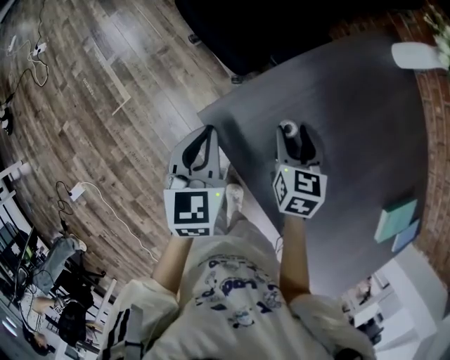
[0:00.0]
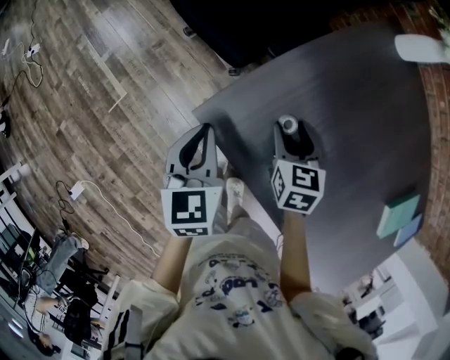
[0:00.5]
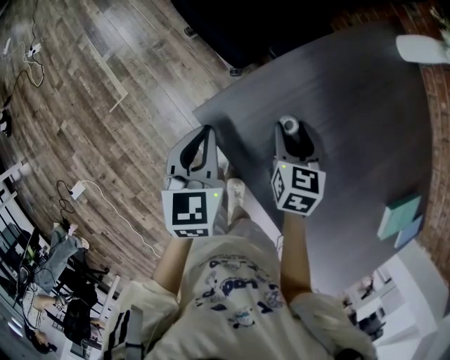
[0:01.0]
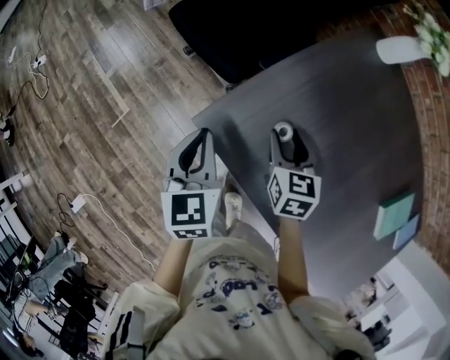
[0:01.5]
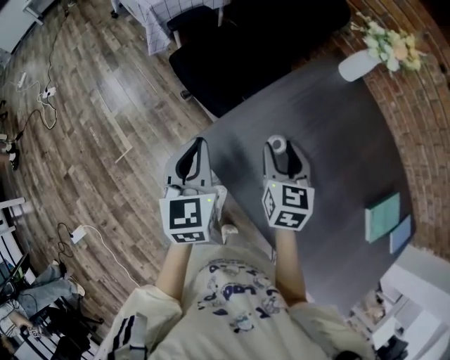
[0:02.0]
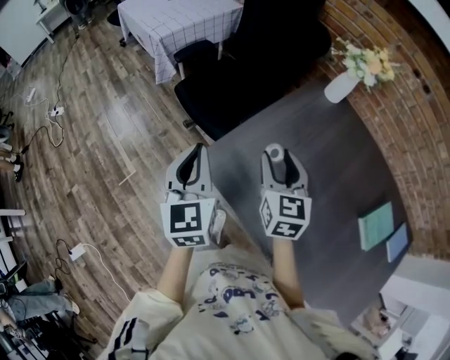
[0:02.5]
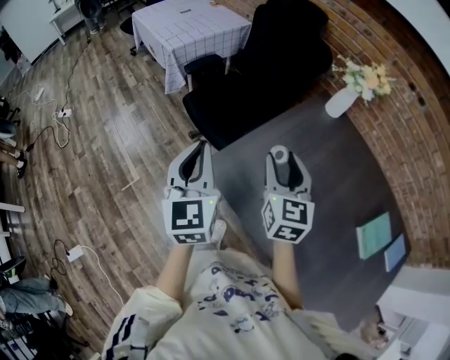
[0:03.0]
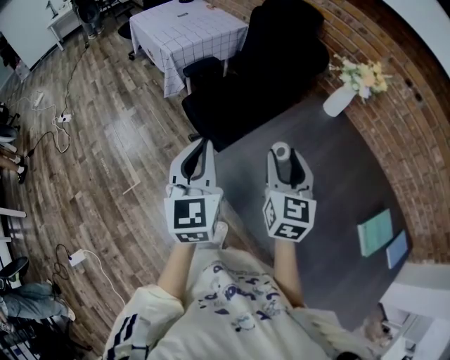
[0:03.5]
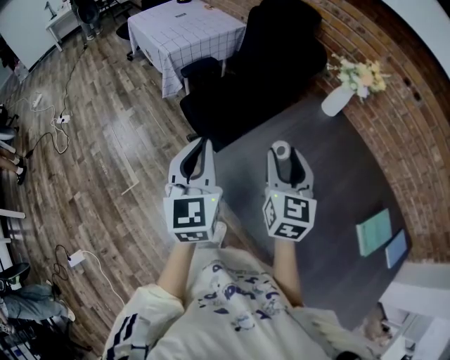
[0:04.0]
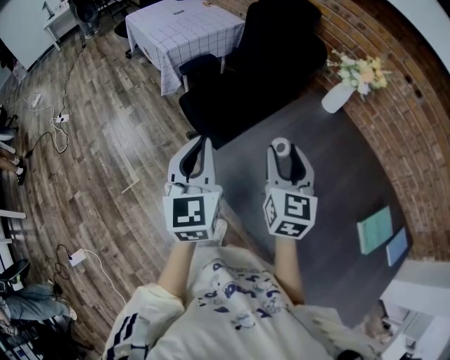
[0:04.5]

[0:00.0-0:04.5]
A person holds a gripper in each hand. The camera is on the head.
0:00.0 to 0:02.0: The two grippers go some 15 cm upward.
0:02.0 to 0:04.5: The grippers both shift upward by some 15 cm.

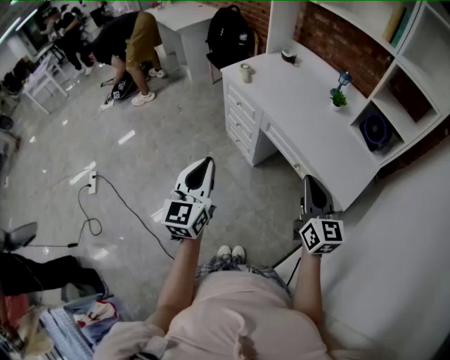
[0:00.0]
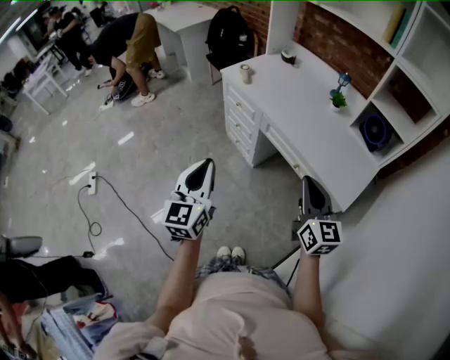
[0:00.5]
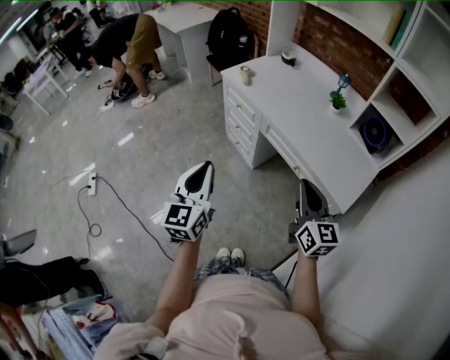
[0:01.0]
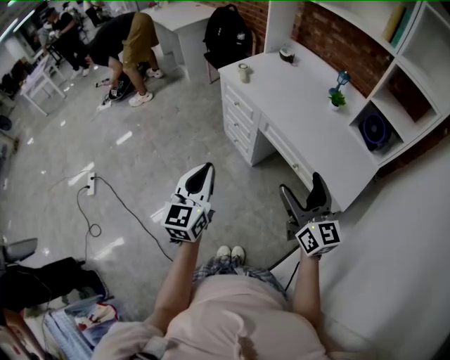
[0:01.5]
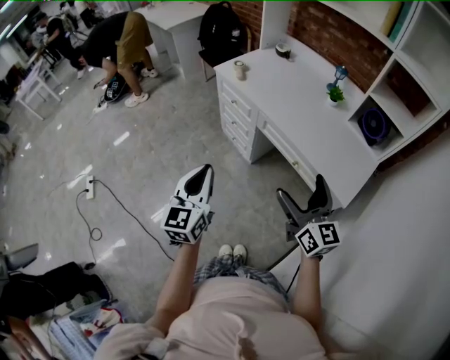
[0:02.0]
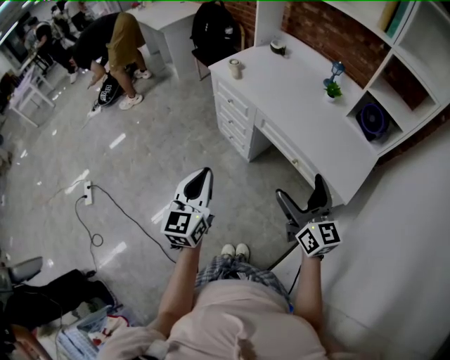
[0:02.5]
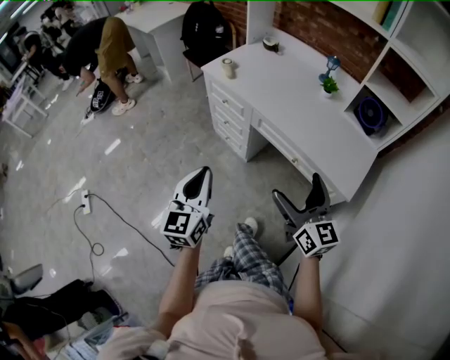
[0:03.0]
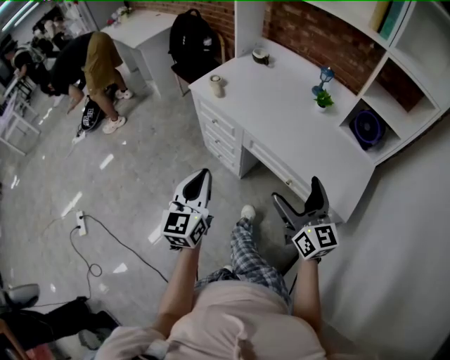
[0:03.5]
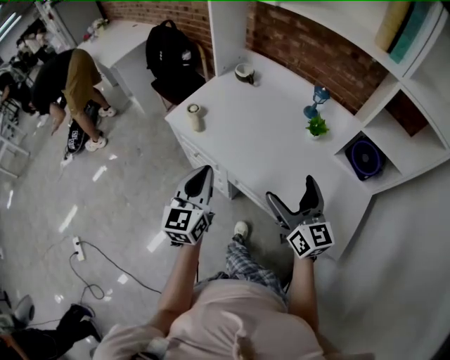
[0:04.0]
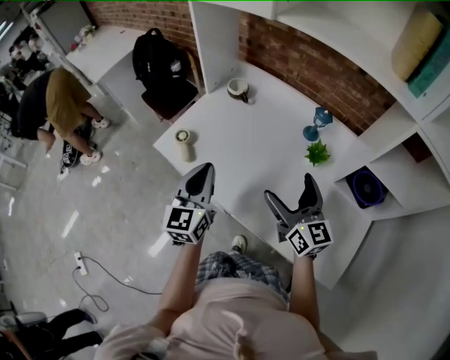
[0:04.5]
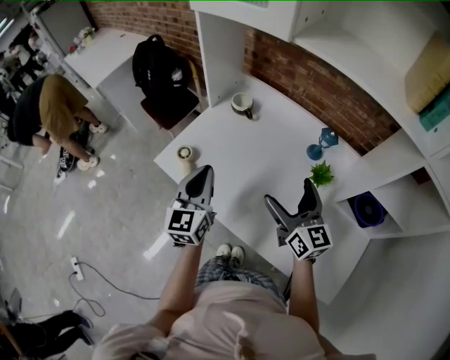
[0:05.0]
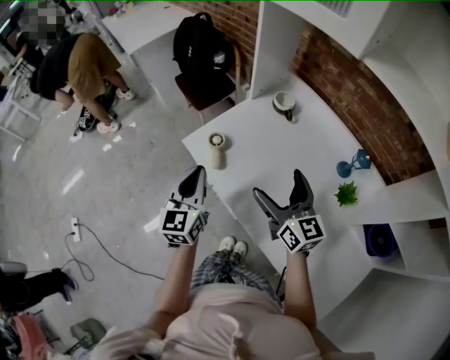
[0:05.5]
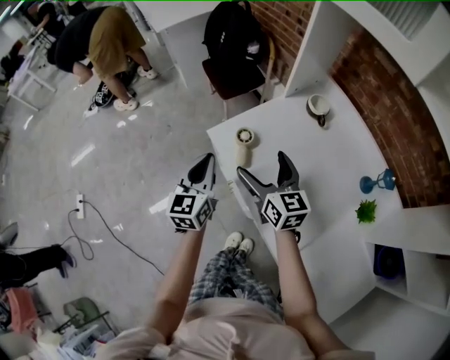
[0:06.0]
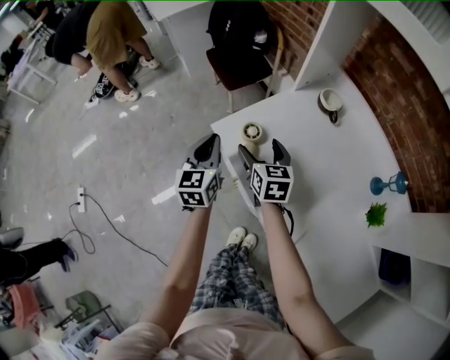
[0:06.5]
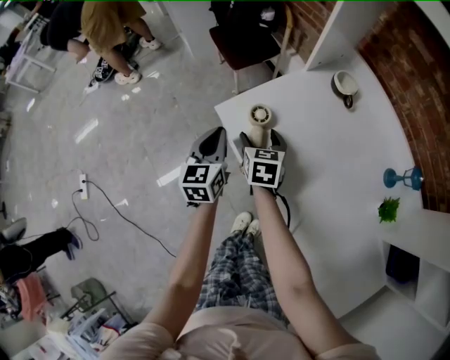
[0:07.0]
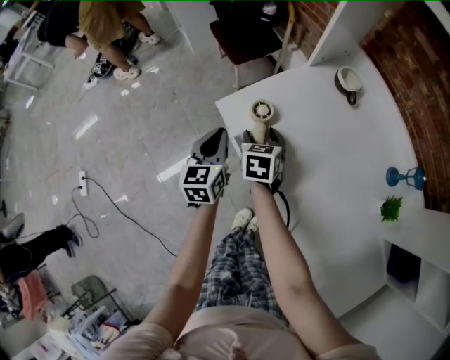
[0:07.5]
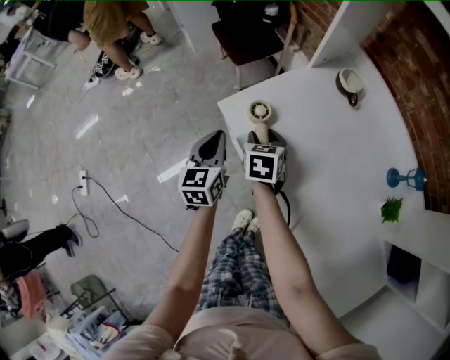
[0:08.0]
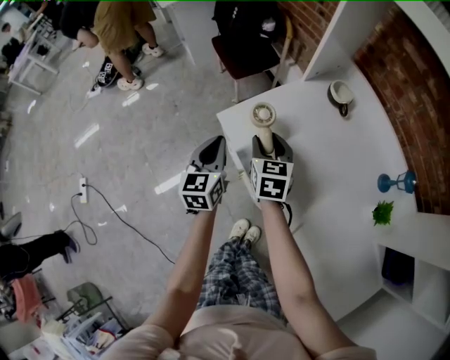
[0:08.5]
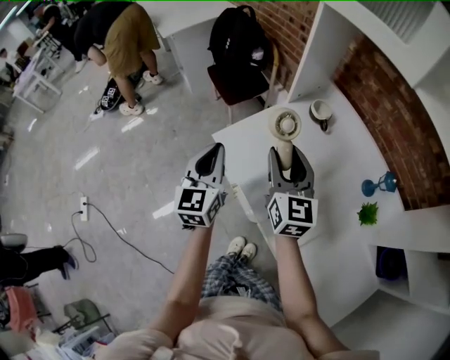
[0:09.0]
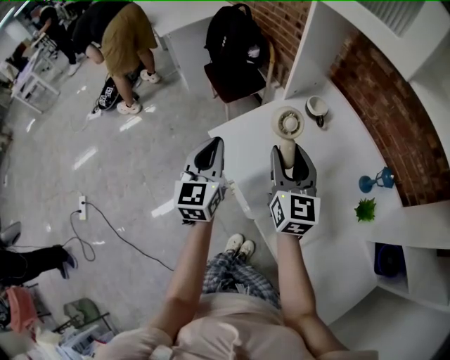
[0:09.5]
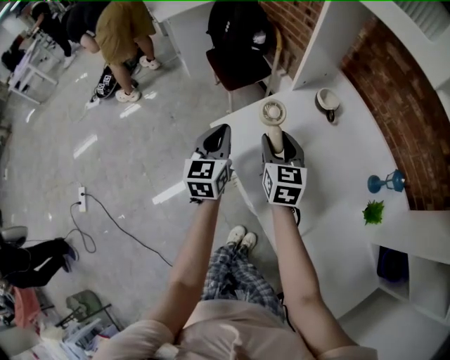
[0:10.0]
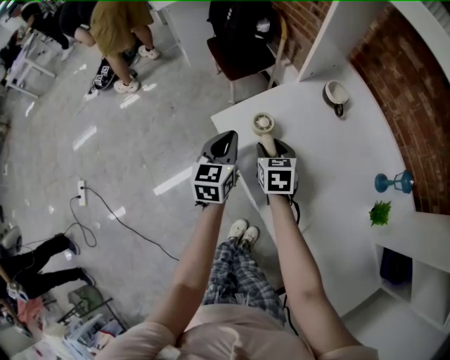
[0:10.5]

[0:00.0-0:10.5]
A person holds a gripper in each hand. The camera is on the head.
0:00.0 to 0:02.0: The right gripper opens up.
0:02.0 to 0:04.0: Both grippers travel together forward, about 35 cm.
0:04.0 to 0:06.5: The grippers both shift forward, to the left and downward by about 50 cm. The left gripper rotates about 30 degrees. Meanwhile the right gripper rotates approximately 30 degrees.
0:06.5 to 0:08.5: The right gripper reaches roughly 10 cm downward, then returns, and closes.
0:08.5 to 0:10.5: The left gripper travels upward and back again, some 15 cm each way. Meanwhile the right gripper reaches some 20 cm upward, then returns.

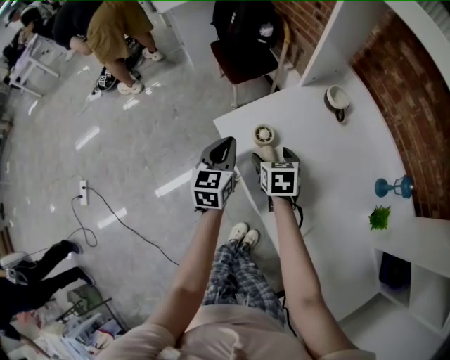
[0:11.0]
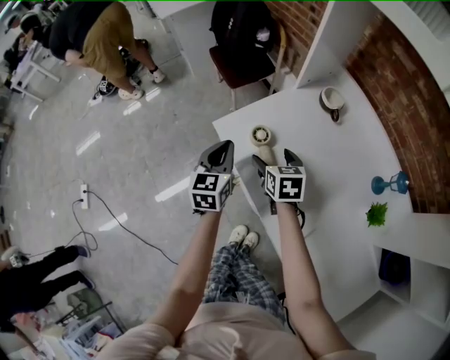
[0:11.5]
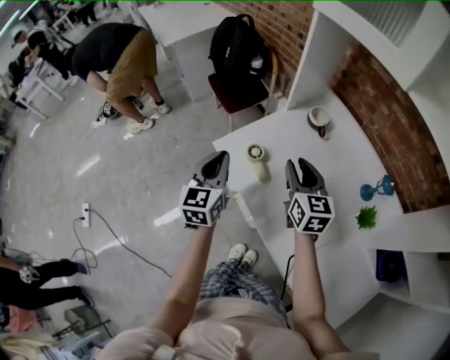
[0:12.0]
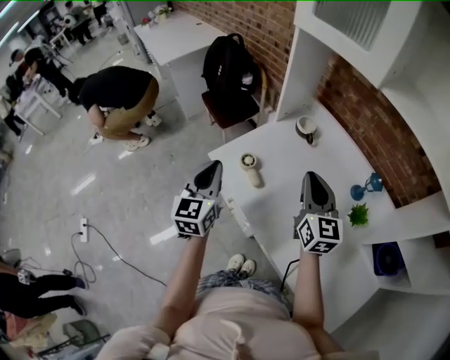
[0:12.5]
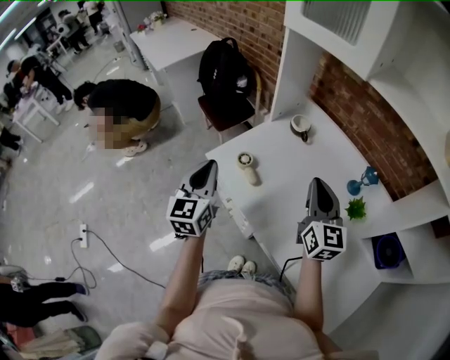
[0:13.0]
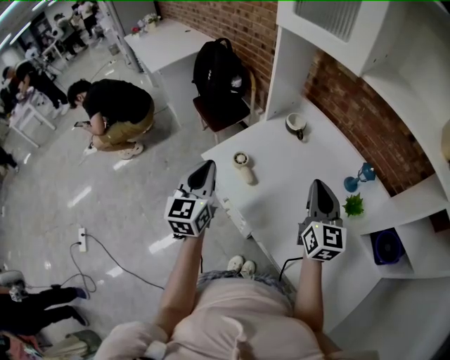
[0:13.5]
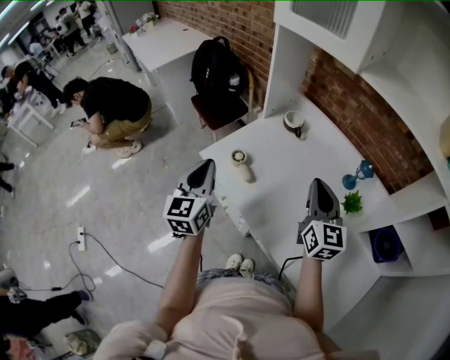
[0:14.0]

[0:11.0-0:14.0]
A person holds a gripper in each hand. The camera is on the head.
0:11.0 to 0:12.5: The left gripper is displaced upward and backward by about 20 cm. Meanwhile the right gripper shifts approximately 35 cm upward, to the right and backward, angles its fingers upward, by about 40 degrees, and closes.
0:12.5 to 0:14.0: The right gripper shifts approximately 10 cm to the right and backward.

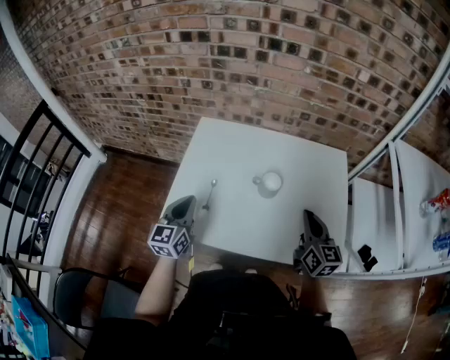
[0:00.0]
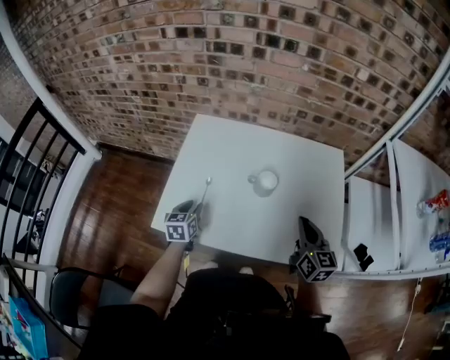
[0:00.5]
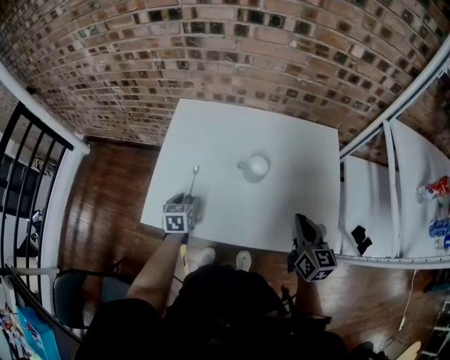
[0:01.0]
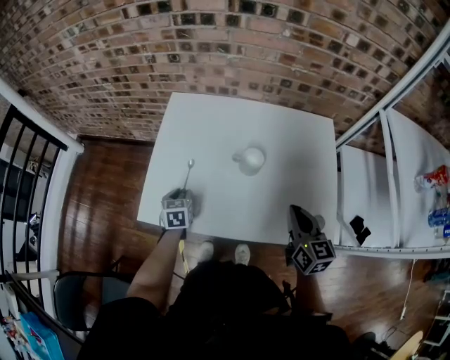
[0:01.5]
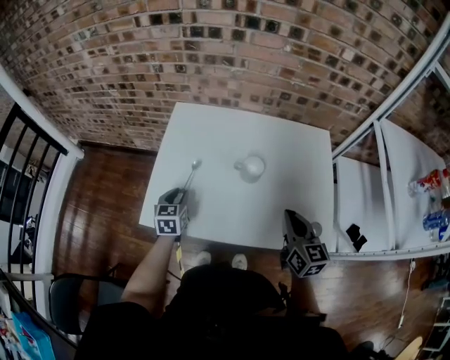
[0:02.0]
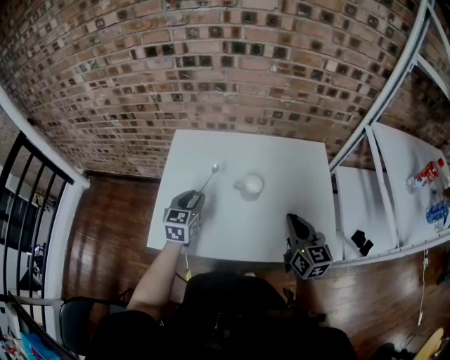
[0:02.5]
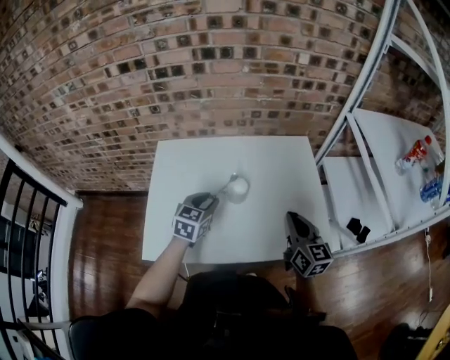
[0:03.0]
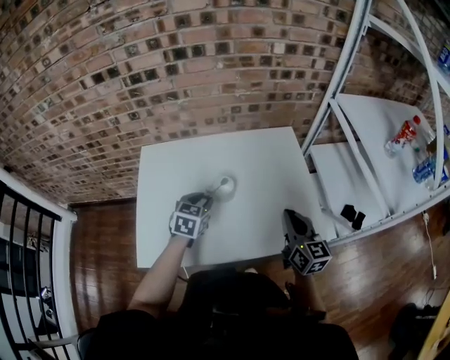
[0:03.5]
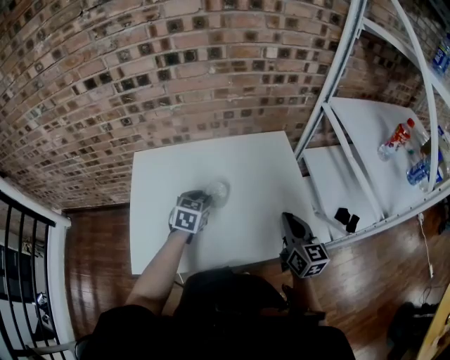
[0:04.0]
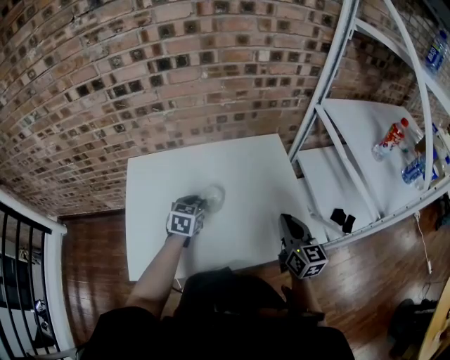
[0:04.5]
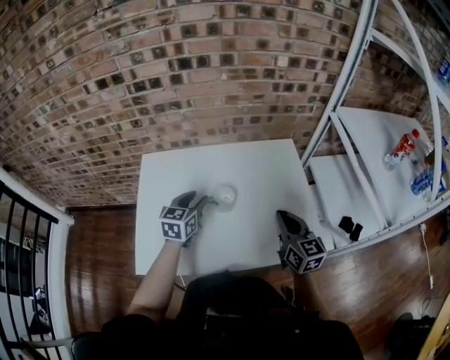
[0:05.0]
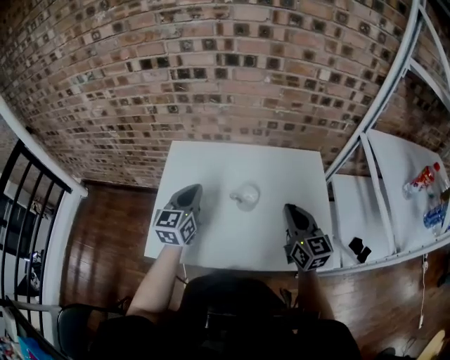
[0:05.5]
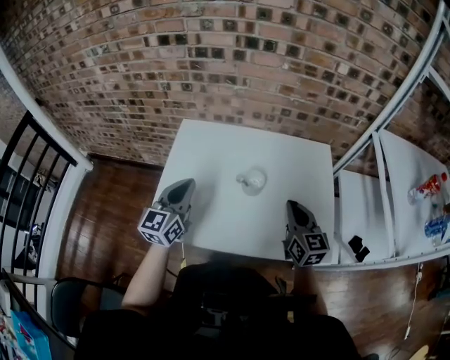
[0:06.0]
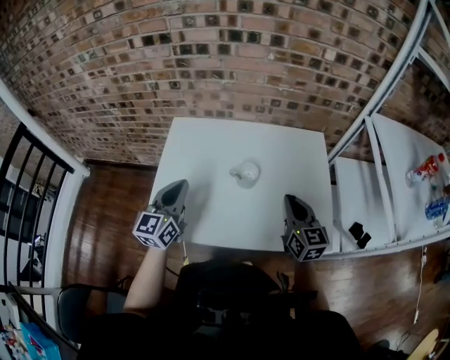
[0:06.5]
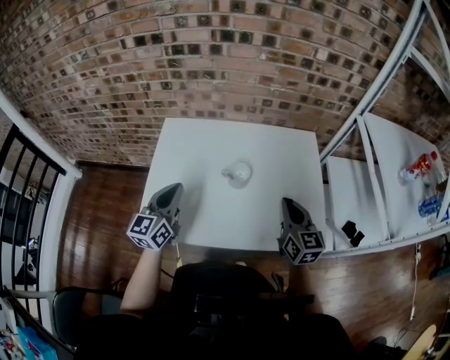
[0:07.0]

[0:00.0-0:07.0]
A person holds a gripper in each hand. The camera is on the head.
0:00.0 to 0:02.0: The left gripper is displaced downward by roughly 15 cm, turns by approximately 20 degrees, and opens up.
0:02.0 to 0:03.5: The right gripper travels to the right by roughly 5 cm, while the left gripper is displaced to the right by some 20 cm, and rotates approximately 30 degrees.
0:03.5 to 0:05.0: The left gripper moves some 5 cm.
0:05.0 to 0:07.0: The left gripper moves backward, to the left and upward, roughly 15 cm, rotates about 20 degrees, and closes.

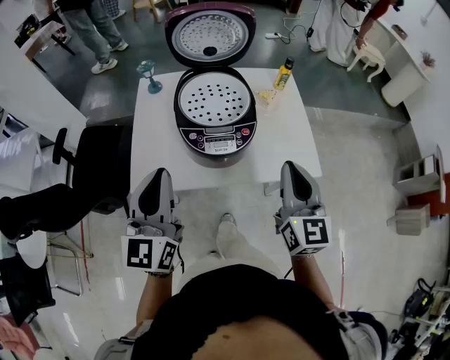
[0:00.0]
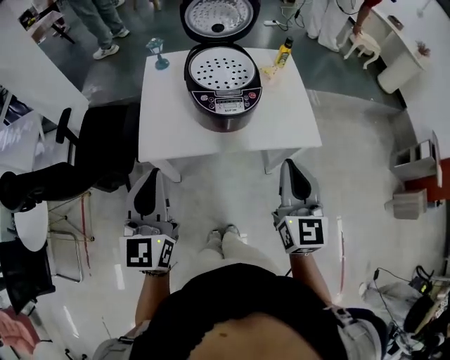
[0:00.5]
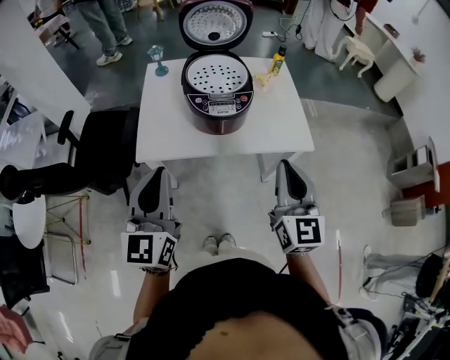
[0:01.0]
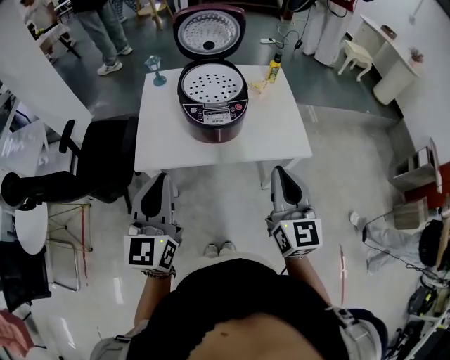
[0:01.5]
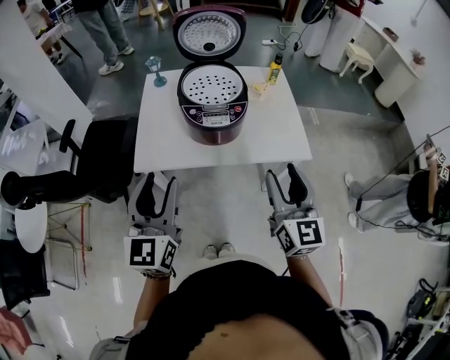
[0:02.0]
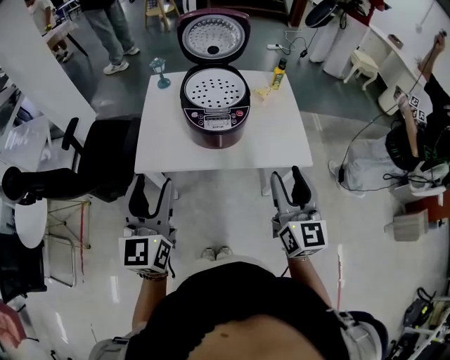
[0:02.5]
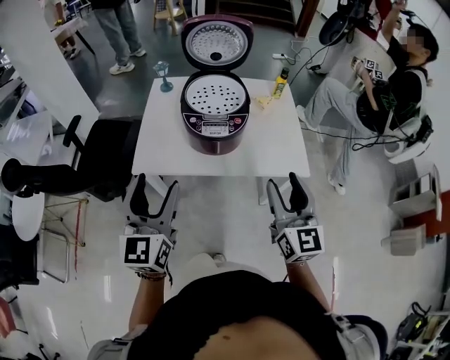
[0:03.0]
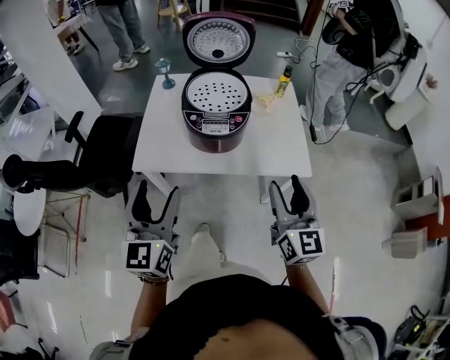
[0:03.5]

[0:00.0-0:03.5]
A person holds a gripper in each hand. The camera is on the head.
0:00.0 to 0:02.0: Both grippers move backward, approximately 10 cm. The left gripper opens its fingers. The right gripper opens.
0:02.0 to 0:03.5: The left gripper opens.
